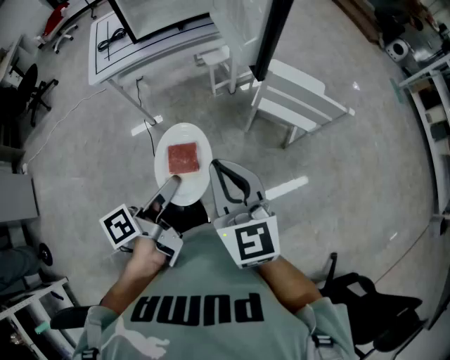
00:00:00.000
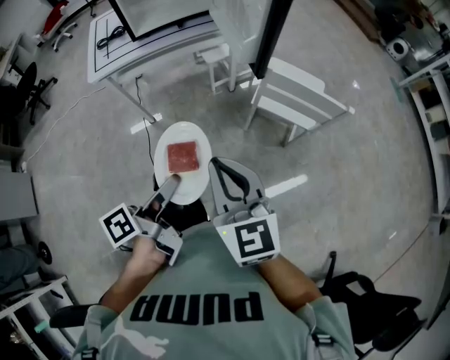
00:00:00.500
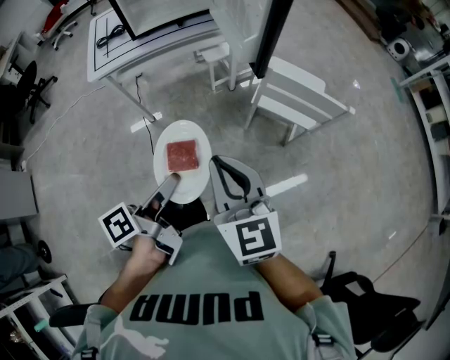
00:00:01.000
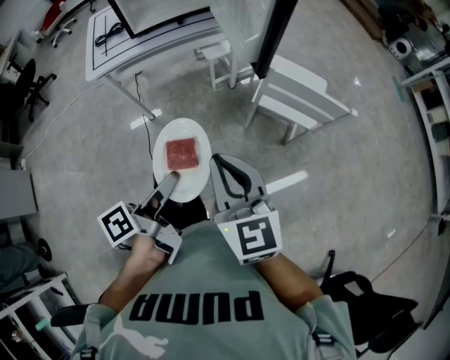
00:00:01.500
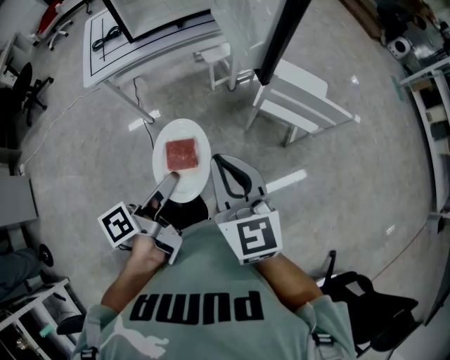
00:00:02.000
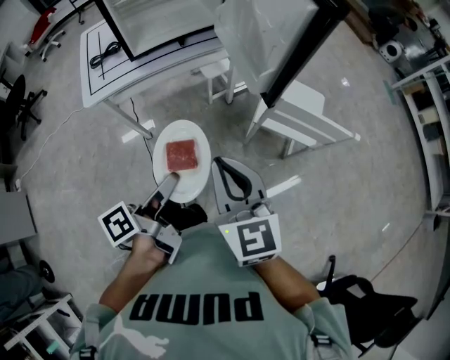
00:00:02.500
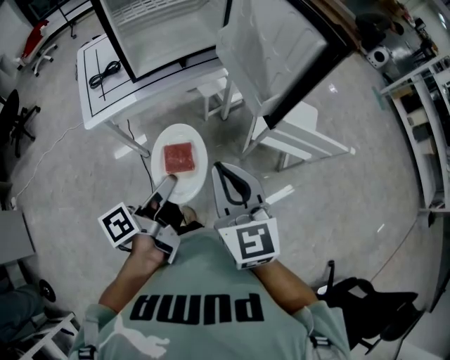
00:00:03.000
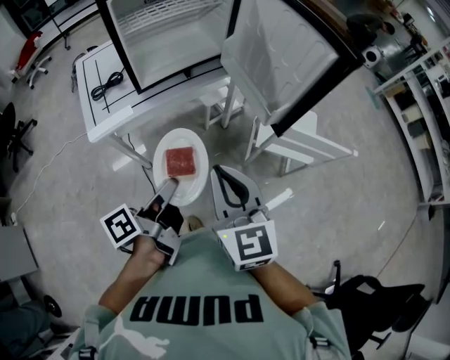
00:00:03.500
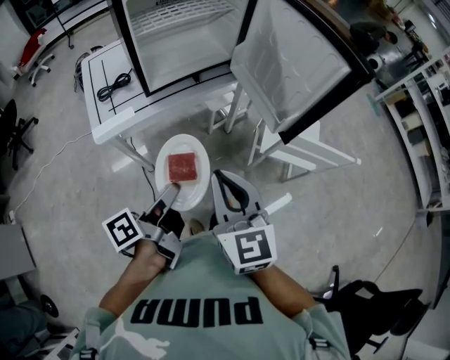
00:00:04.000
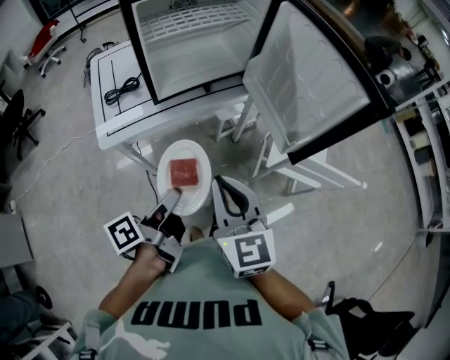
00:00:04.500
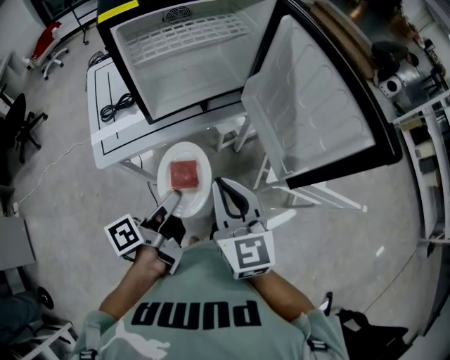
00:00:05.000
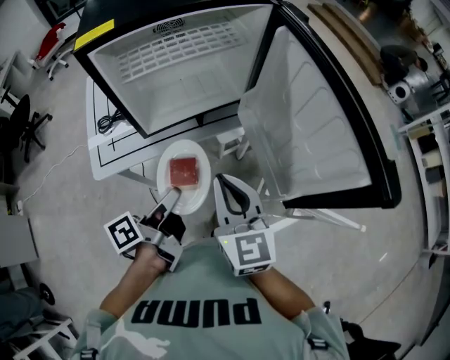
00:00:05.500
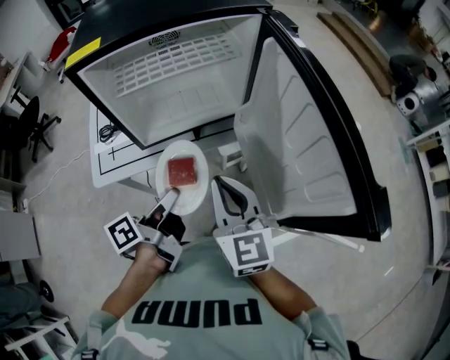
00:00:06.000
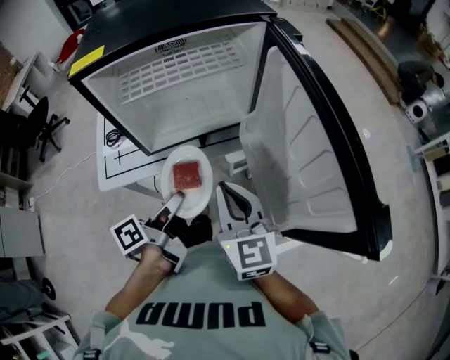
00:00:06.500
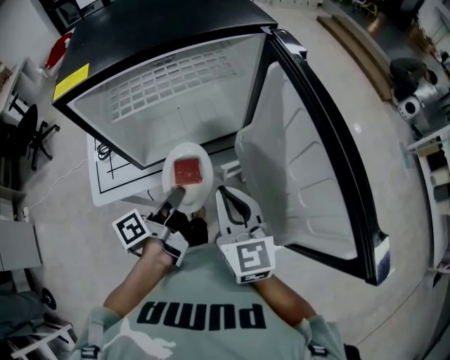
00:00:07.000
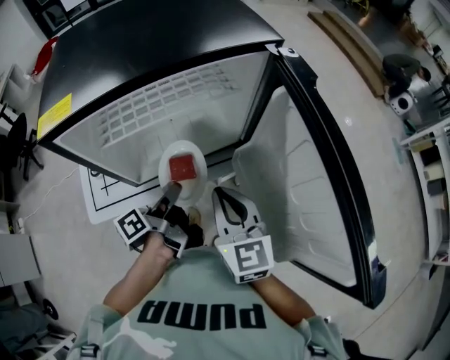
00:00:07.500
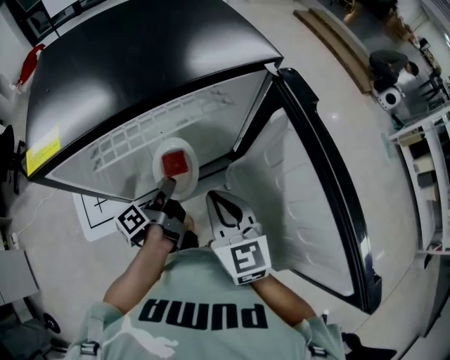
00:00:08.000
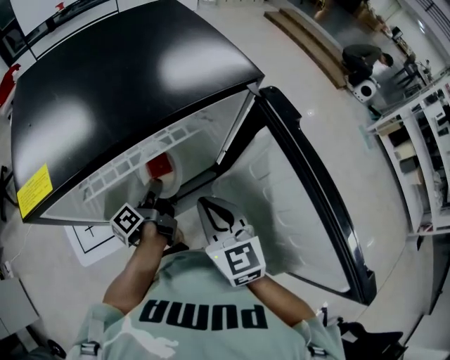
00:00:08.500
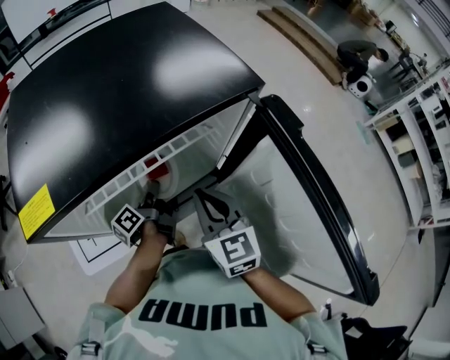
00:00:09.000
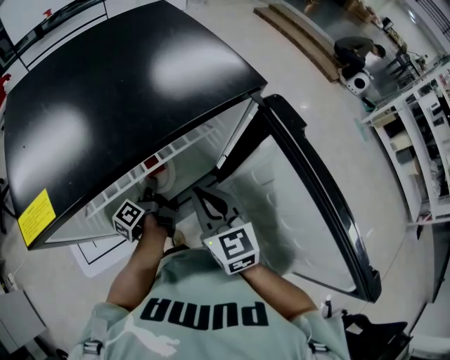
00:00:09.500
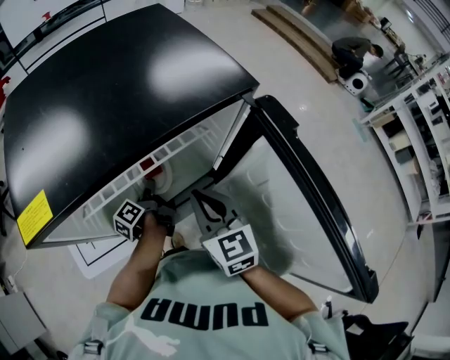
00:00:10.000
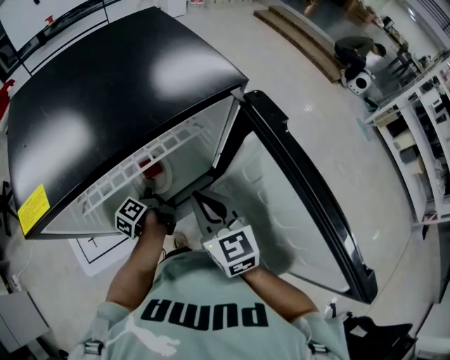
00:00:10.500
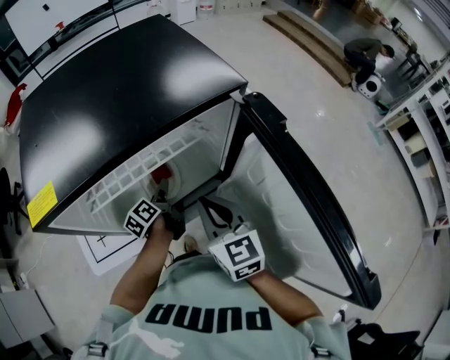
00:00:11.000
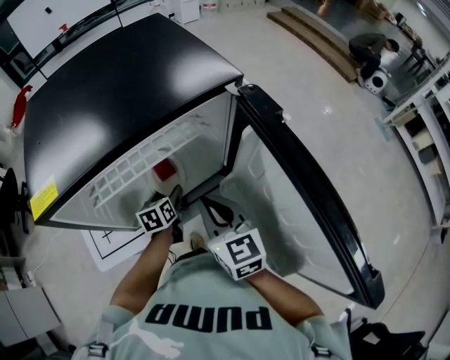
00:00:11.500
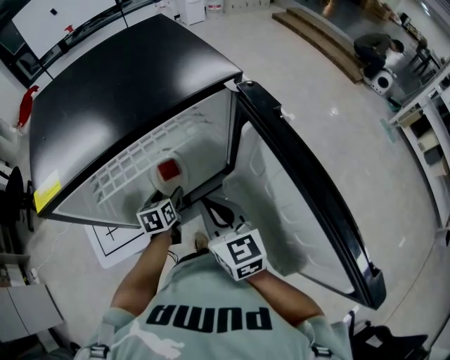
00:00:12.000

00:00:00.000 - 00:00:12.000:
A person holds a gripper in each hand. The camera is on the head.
00:00:00.000 - 00:00:02.000: The left gripper moves approximately 5 cm. Meanwhile the right gripper goes about 5 cm forward.
00:00:02.000 - 00:00:04.000: The grippers both shift to the left and forward by some 20 cm.
00:00:04.000 - 00:00:06.000: Both grippers move forward, approximately 25 cm.
00:00:06.000 - 00:00:08.000: The right gripper is displaced forward by roughly 15 cm. The left gripper shifts some 20 cm forward.
00:00:08.000 - 00:00:10.000: The left gripper is displaced forward and downward by about 15 cm. Meanwhile the right gripper travels forward by approximately 5 cm.
00:00:10.000 - 00:00:12.000: The left gripper rotates around the line of its fingers by about 60 degrees, clockwise from behind, and opens.

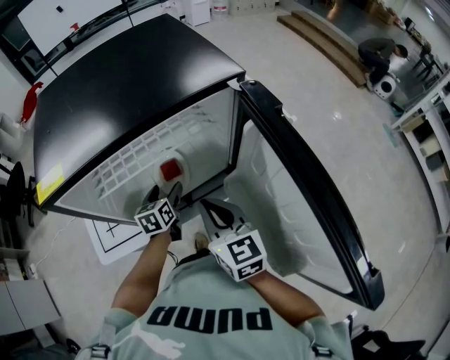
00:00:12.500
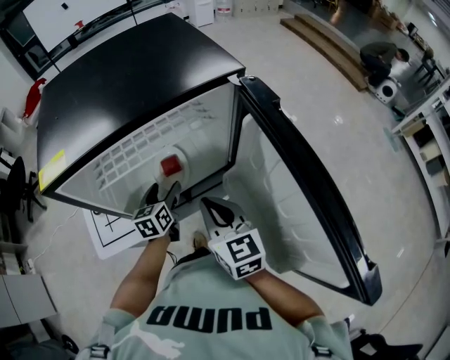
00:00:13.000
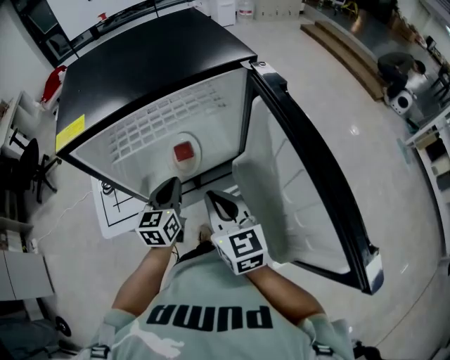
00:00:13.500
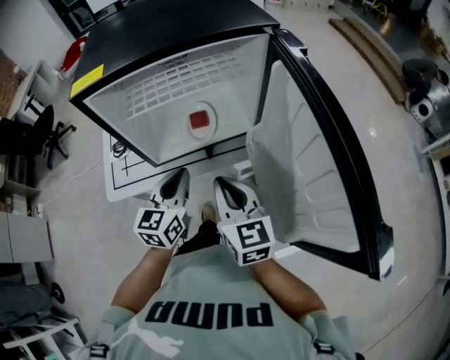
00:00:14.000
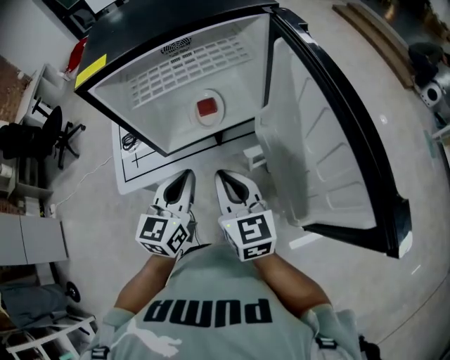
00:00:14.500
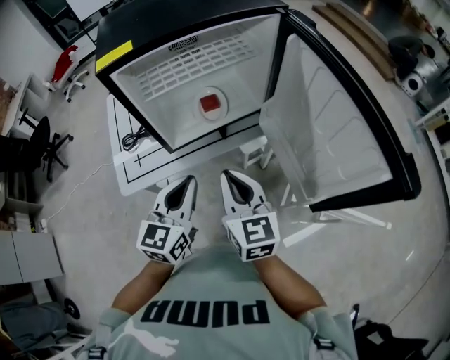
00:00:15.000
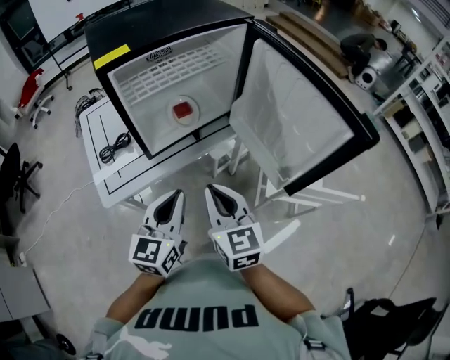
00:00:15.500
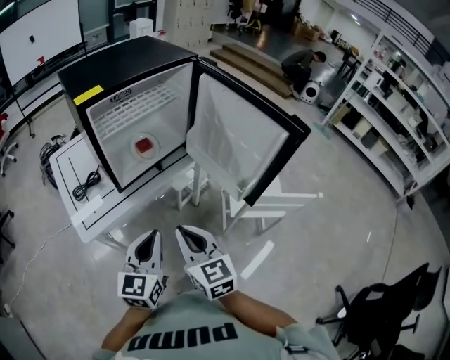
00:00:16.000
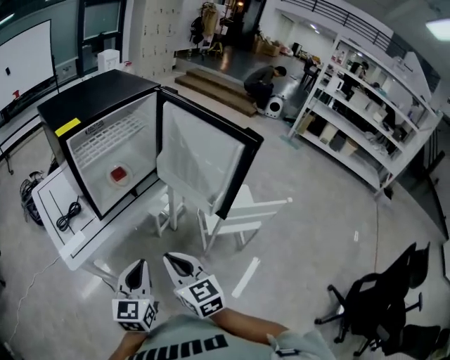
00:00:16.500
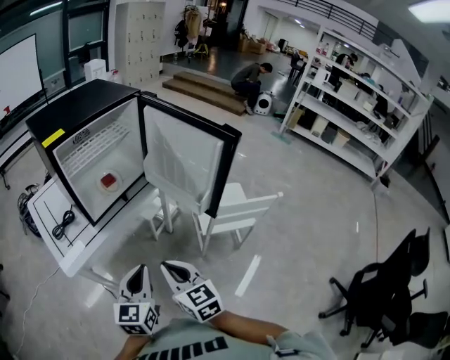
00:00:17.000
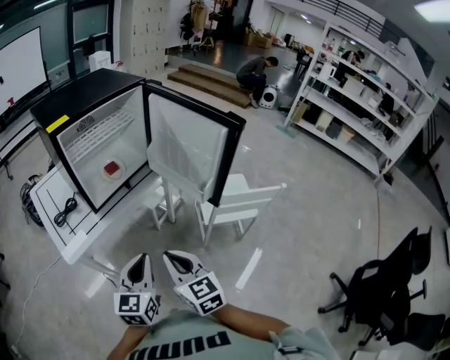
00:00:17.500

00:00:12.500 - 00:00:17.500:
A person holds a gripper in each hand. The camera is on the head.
00:00:12.500 - 00:00:15.000: The left gripper heads backward and upward, covering roughly 30 cm, rotates roughly 30 degrees, and closes up; the right gripper is displaced backward and to the left by some 15 cm.
00:00:15.000 - 00:00:17.500: The grippers both shift backward by some 20 cm.

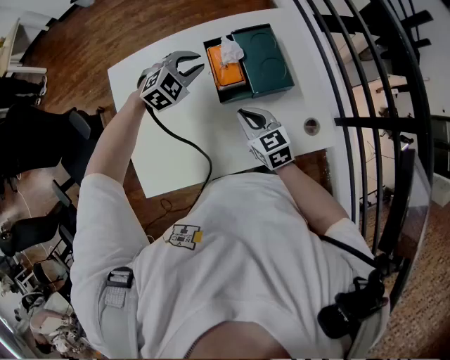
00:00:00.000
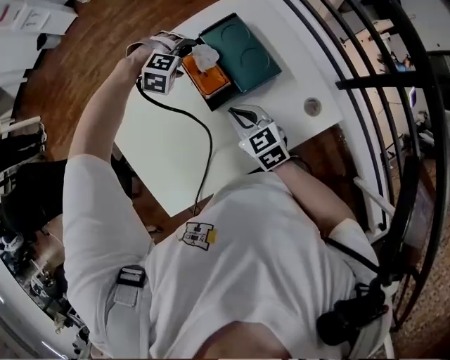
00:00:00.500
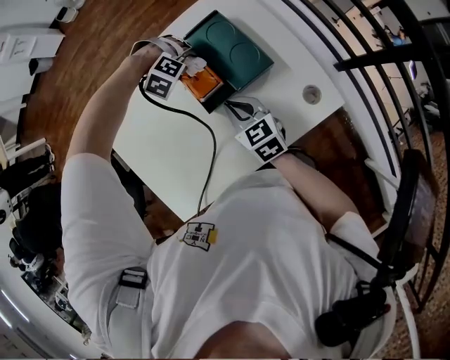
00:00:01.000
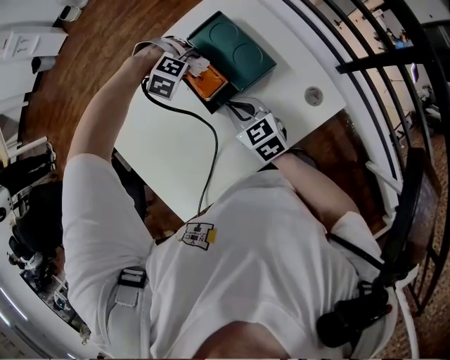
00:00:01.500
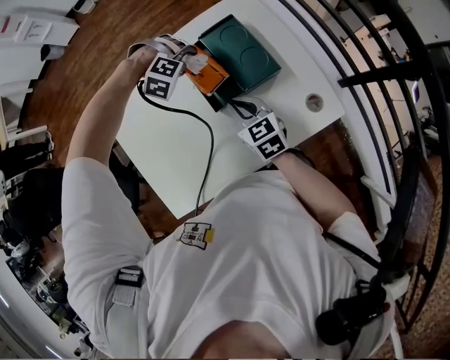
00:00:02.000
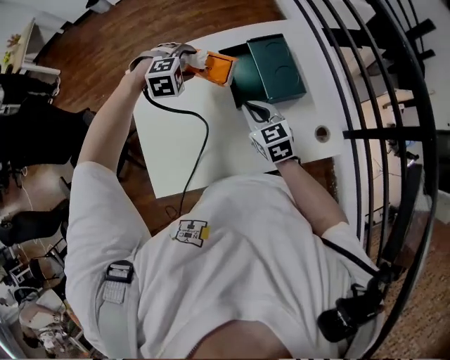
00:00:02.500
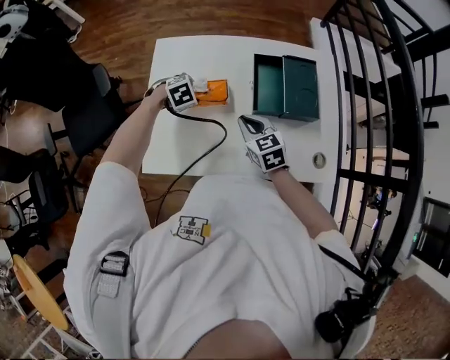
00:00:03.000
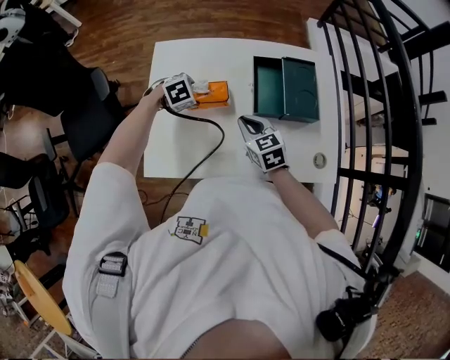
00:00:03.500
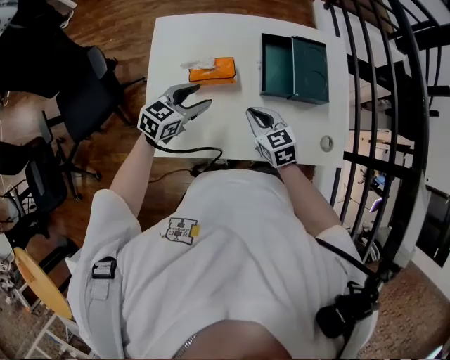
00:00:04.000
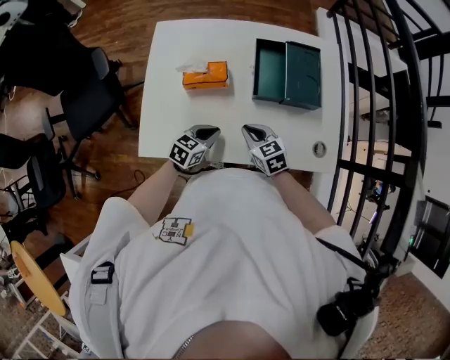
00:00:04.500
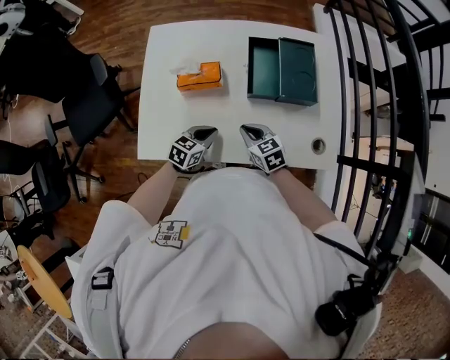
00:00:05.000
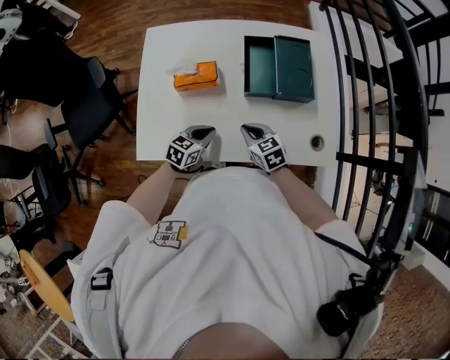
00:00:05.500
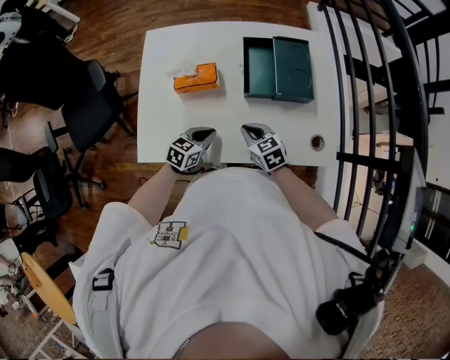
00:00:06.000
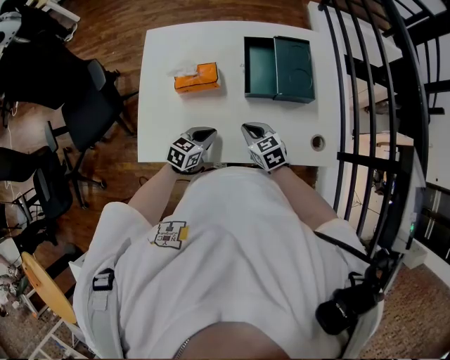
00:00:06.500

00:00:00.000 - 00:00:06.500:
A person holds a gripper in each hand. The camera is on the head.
00:00:00.000 - 00:00:02.000: The left gripper moves about 5 cm, rotates around the line of its fingers by about 60 degrees, clockwise from behind, and opens up.
00:00:02.000 - 00:00:04.500: The left gripper swings up and down, roughly 15 cm each way, with 3 reversals, rotates around the line of its fingers by about 120 degrees, counterclockwise from behind, and closes up, while the right gripper shifts by about 15 cm, and rotates about 30 degrees.
00:00:04.500 - 00:00:06.500: The grippers move only a little.

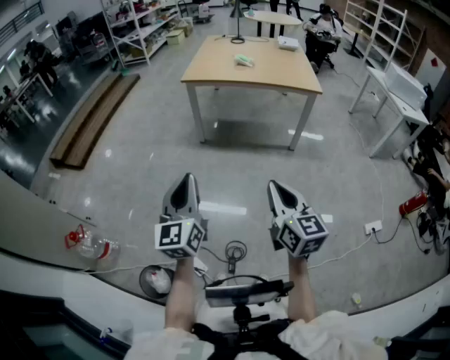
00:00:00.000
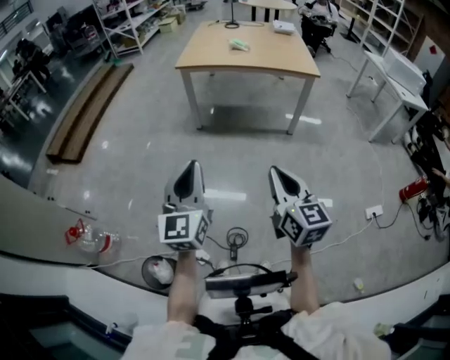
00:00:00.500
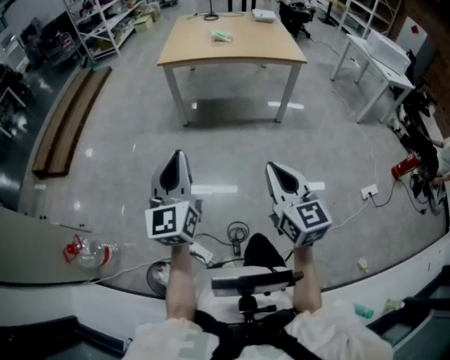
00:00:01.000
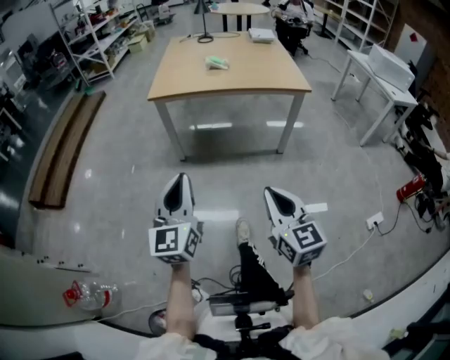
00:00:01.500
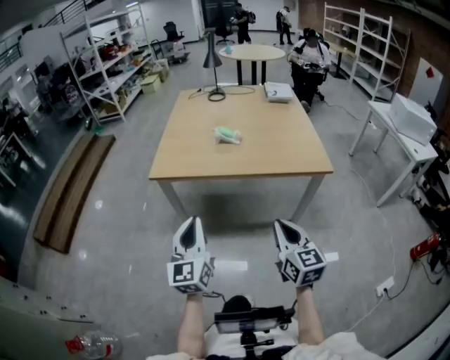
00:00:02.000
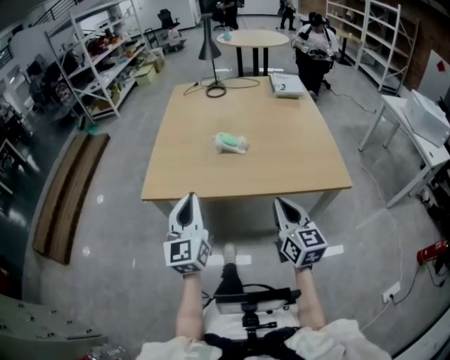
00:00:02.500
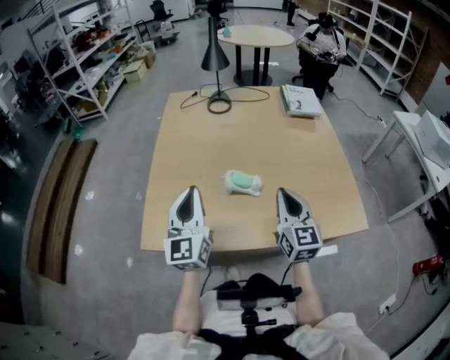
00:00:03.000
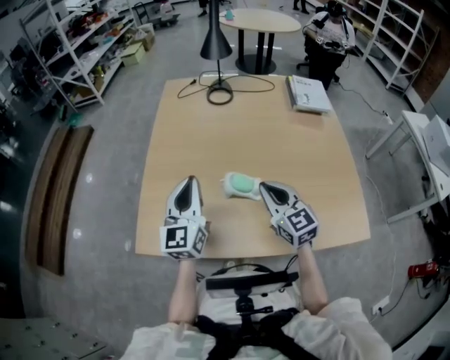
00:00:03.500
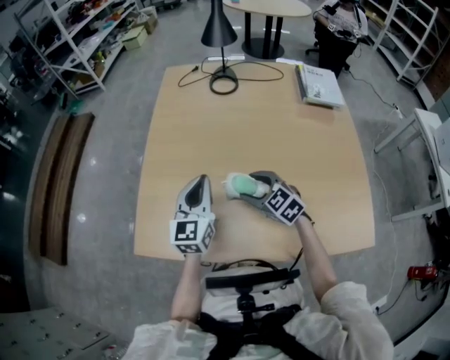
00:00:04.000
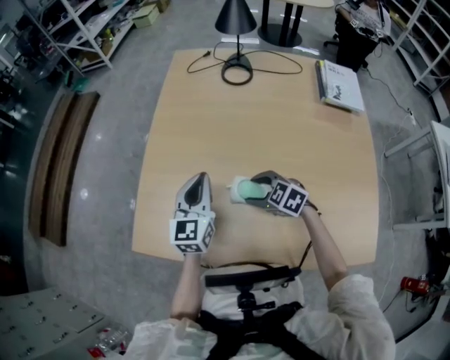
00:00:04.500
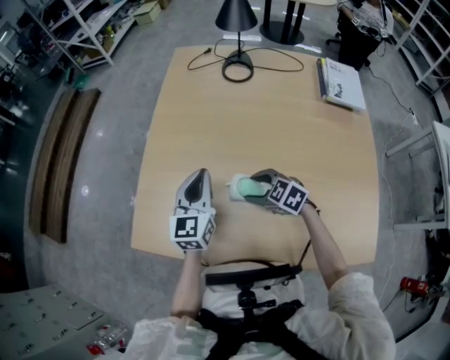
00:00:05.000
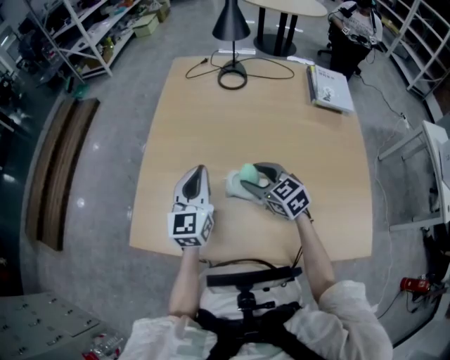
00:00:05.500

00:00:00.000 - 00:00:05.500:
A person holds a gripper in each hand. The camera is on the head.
00:00:00.000 - 00:00:02.000: The pair of grippers is taken forward, some 60 cm.
00:00:02.000 - 00:00:03.500: The pair of grippers is taken forward, some 60 cm.
00:00:03.500 - 00:00:05.500: The right gripper heads forward and downward, covering about 15 cm, swivels roughly 30 degrees, and opens its fingers. Meanwhile the left gripper travels forward and downward by some 10 cm.
